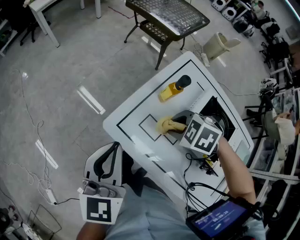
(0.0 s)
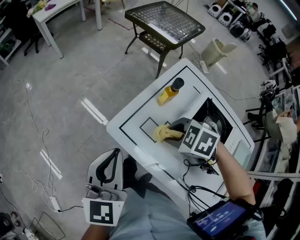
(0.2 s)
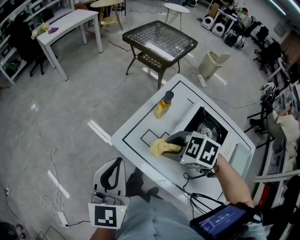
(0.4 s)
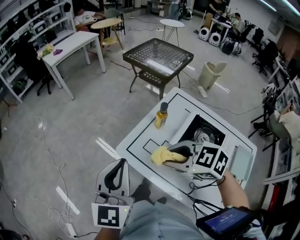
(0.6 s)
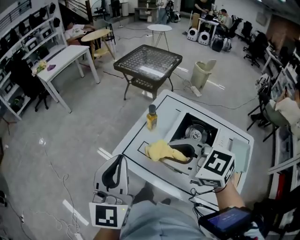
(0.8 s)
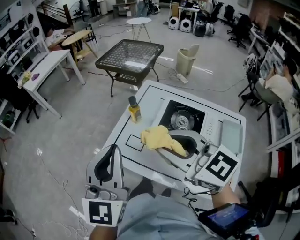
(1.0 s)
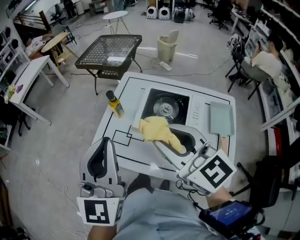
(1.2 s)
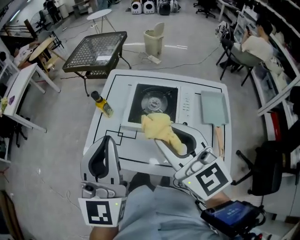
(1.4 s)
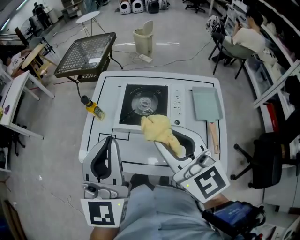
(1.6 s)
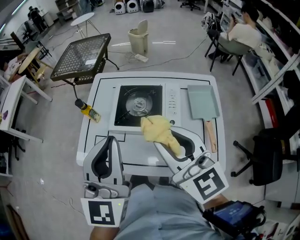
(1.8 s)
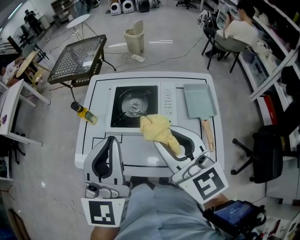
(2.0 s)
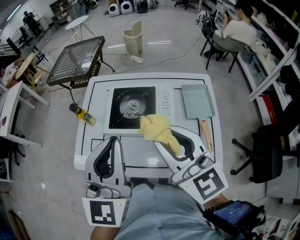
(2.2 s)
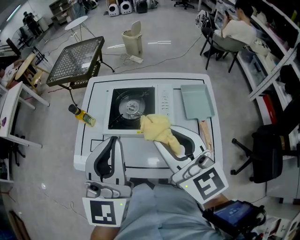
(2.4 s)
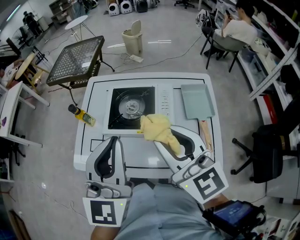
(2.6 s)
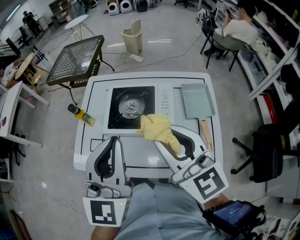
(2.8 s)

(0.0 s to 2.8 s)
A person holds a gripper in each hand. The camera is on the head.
0.0 s - 1.4 s: The left gripper changes place by roughly 30 cm, and changes its angle by some 40 degrees. Meanwhile the right gripper travels upward by some 30 cm, and tilts its fingers about 70 degrees upward.
1.4 s - 2.8 s: Both grippers move to the right, about 10 cm.

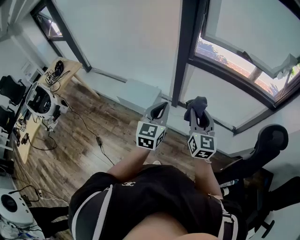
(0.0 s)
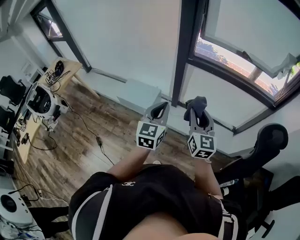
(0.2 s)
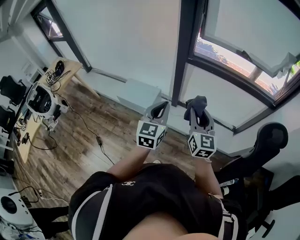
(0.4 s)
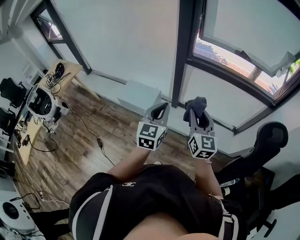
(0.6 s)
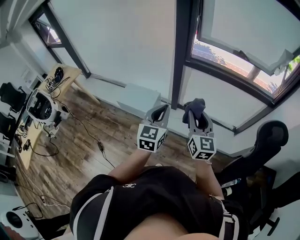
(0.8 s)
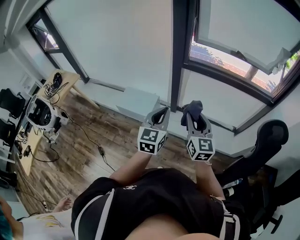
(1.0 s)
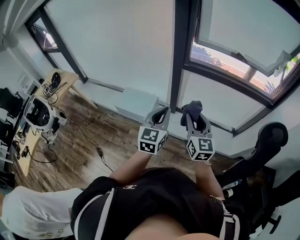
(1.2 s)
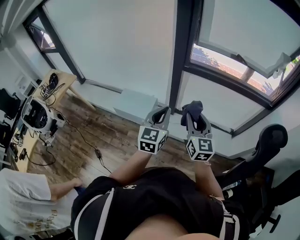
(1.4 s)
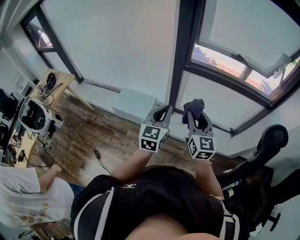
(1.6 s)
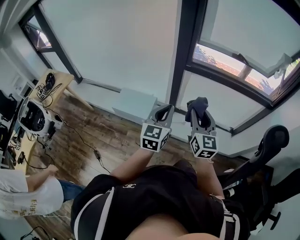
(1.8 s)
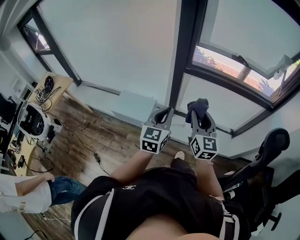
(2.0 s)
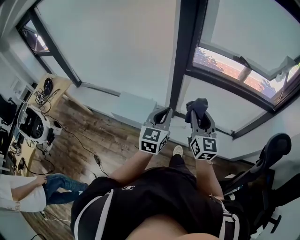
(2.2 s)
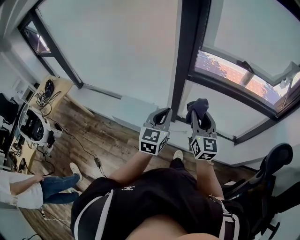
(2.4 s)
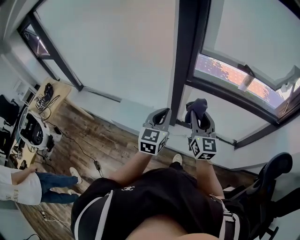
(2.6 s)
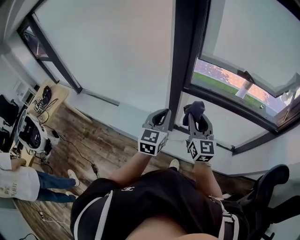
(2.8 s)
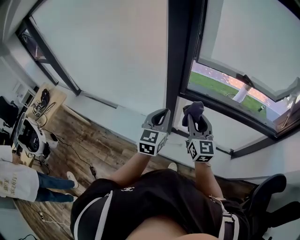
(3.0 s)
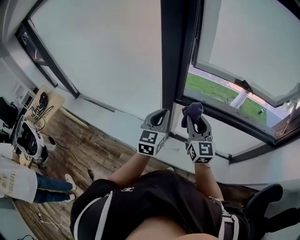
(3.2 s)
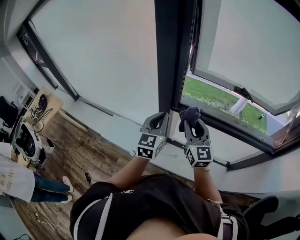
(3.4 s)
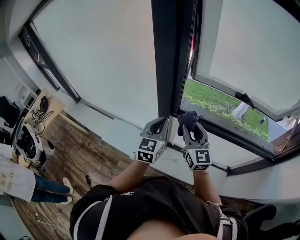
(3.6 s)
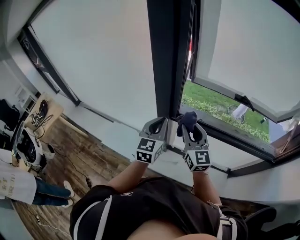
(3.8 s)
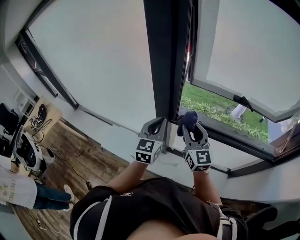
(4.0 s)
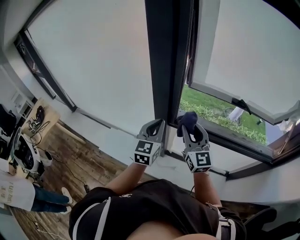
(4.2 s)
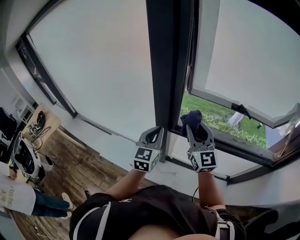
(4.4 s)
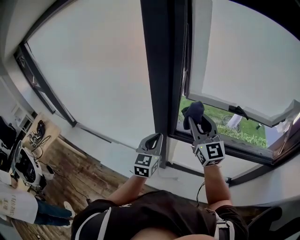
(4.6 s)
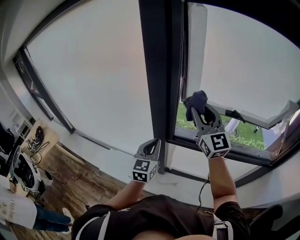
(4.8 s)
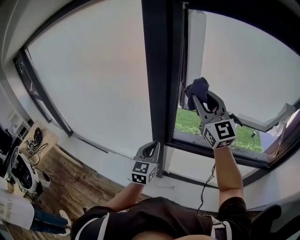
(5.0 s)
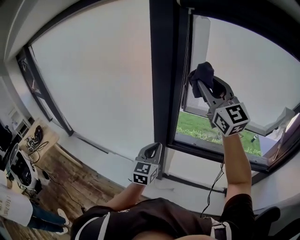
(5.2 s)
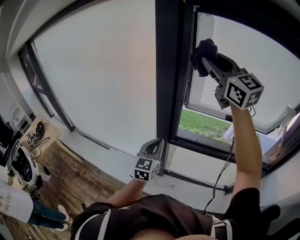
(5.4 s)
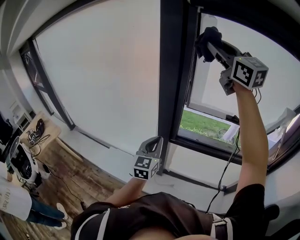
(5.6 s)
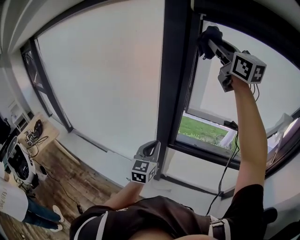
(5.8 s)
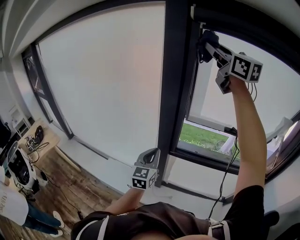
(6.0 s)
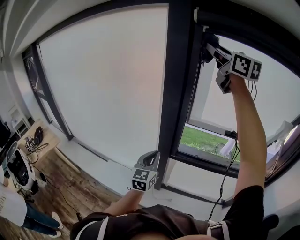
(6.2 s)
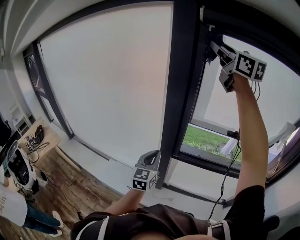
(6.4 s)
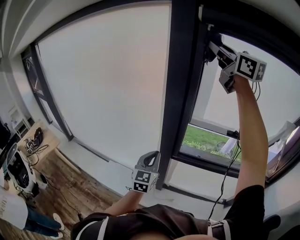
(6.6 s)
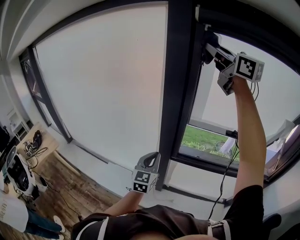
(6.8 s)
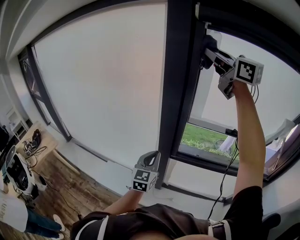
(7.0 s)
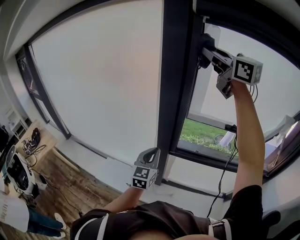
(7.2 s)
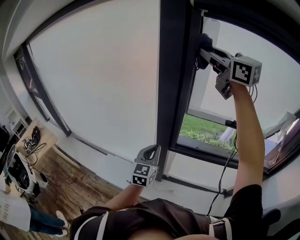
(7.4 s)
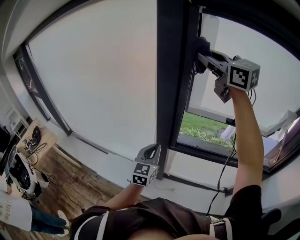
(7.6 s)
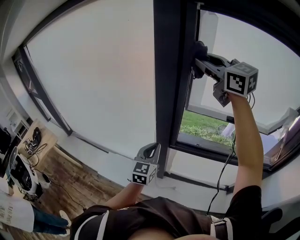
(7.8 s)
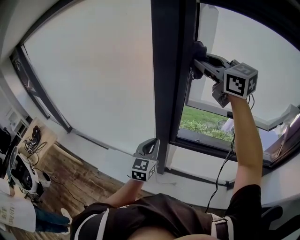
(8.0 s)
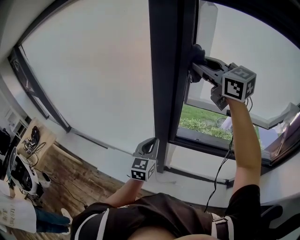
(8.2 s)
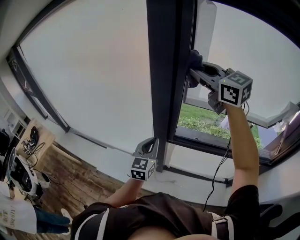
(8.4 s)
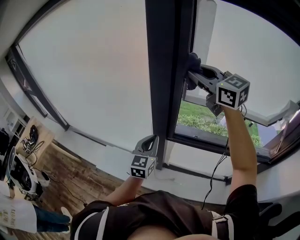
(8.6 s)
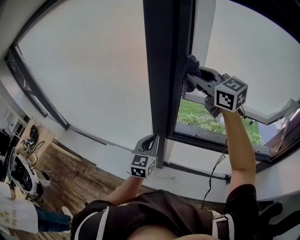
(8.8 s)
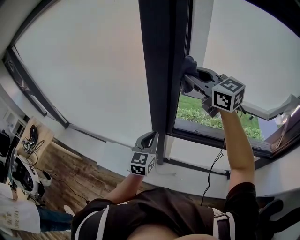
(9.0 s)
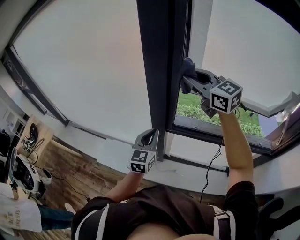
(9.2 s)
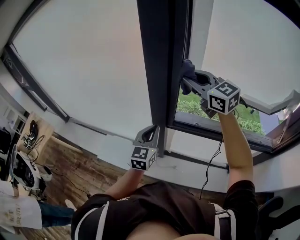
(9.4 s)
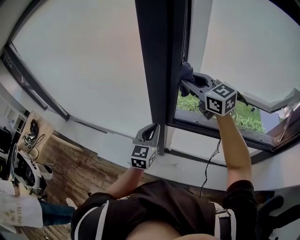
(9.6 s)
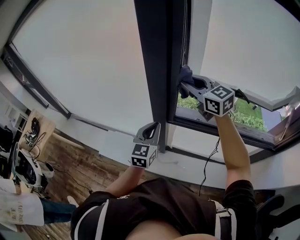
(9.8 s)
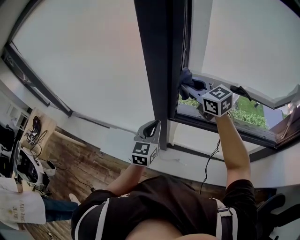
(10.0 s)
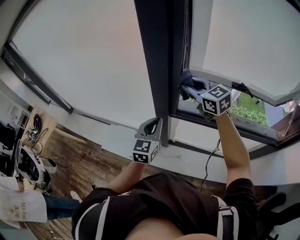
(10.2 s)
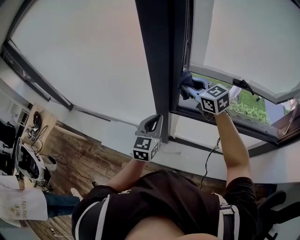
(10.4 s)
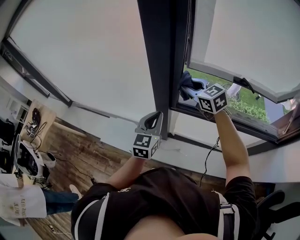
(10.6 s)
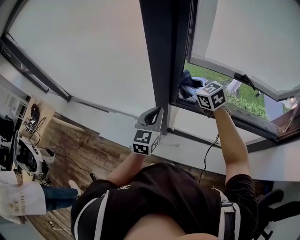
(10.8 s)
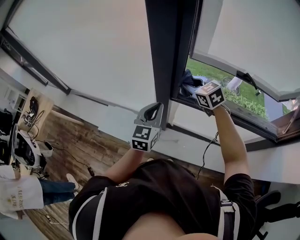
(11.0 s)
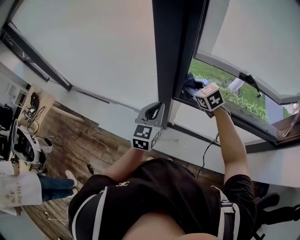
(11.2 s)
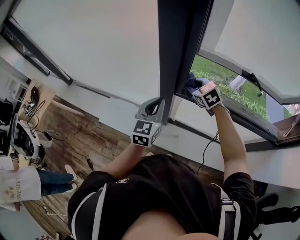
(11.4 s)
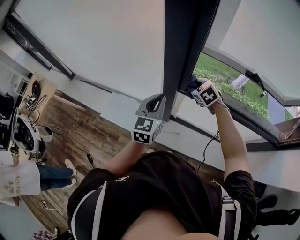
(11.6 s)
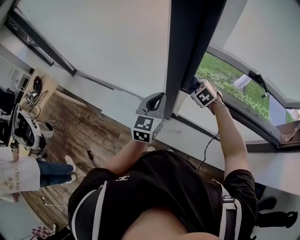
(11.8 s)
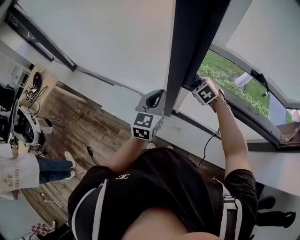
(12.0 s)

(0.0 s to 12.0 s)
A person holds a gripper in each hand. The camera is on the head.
0.0 s - 1.6 s: The grippers make only small movements.
1.6 s - 3.0 s: The two grippers go roughly 25 cm forward.
3.0 s - 4.4 s: The left gripper travels forward by roughly 10 cm, while the right gripper goes approximately 15 cm forward and upward.
4.4 s - 6.0 s: The right gripper moves upward, roughly 40 cm. Meanwhile the left gripper moves approximately 5 cm.
6.0 s - 7.6 s: The right gripper moves downward, roughly 10 cm.
7.6 s - 9.0 s: The right gripper is displaced downward by roughly 15 cm.
9.0 s - 10.4 s: The right gripper goes some 20 cm downward.
10.4 s - 12.0 s: The left gripper shifts by about 5 cm, while the right gripper shifts about 20 cm downward, and points its fingers roughly 40 degrees further downward.

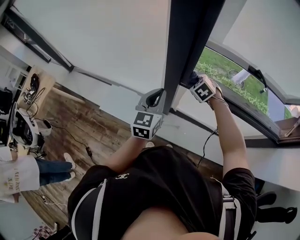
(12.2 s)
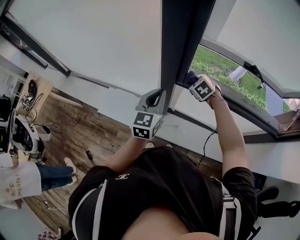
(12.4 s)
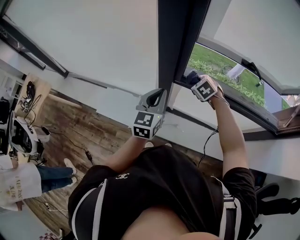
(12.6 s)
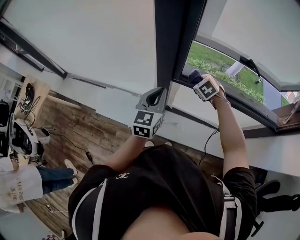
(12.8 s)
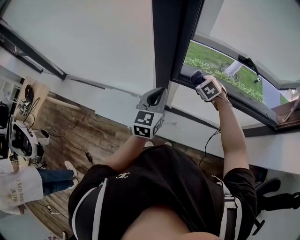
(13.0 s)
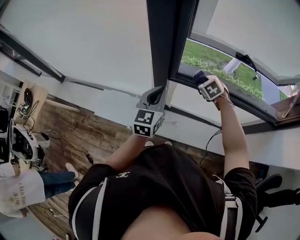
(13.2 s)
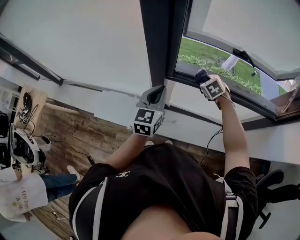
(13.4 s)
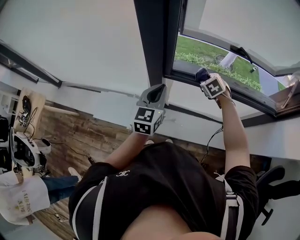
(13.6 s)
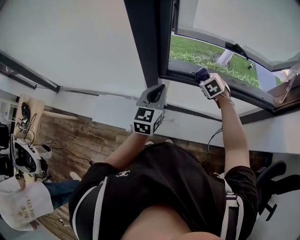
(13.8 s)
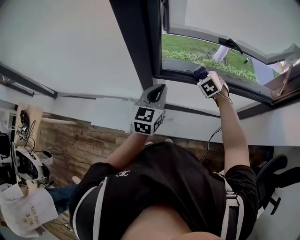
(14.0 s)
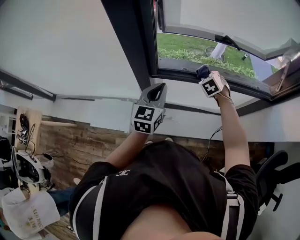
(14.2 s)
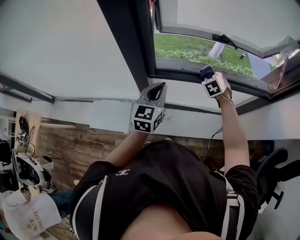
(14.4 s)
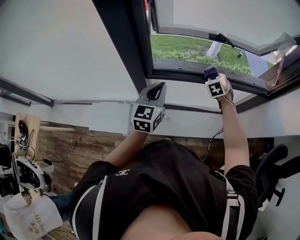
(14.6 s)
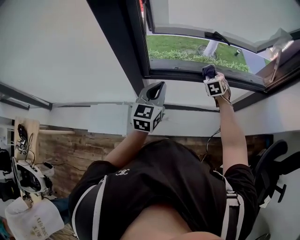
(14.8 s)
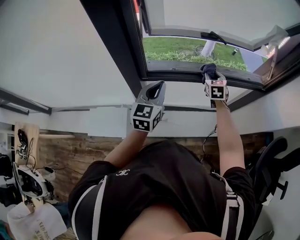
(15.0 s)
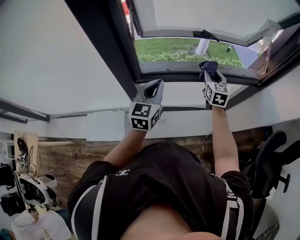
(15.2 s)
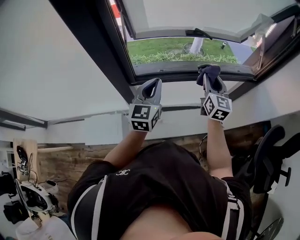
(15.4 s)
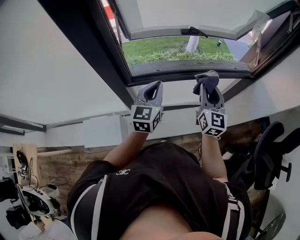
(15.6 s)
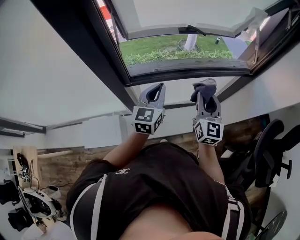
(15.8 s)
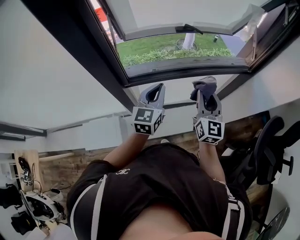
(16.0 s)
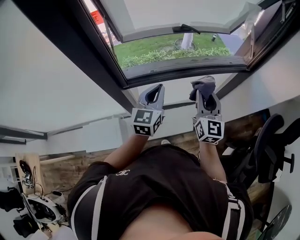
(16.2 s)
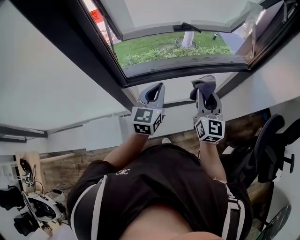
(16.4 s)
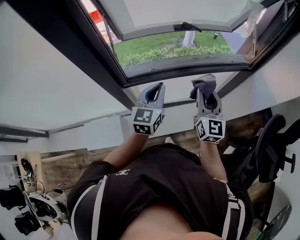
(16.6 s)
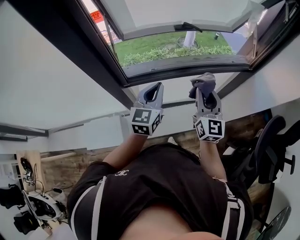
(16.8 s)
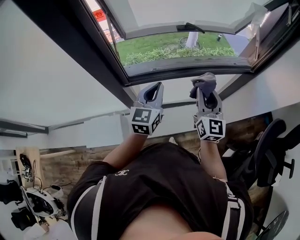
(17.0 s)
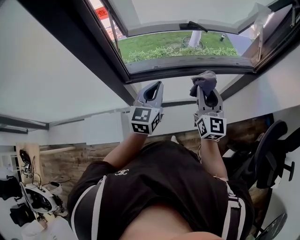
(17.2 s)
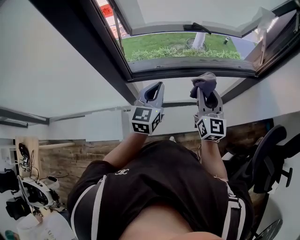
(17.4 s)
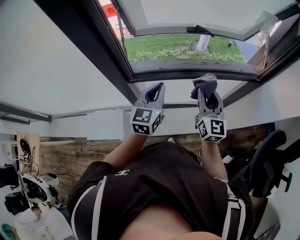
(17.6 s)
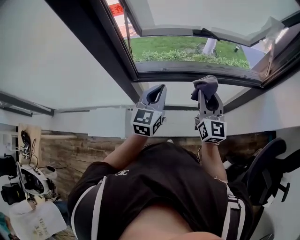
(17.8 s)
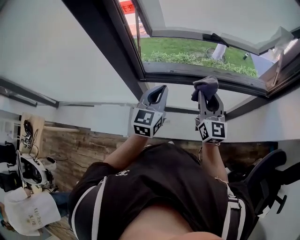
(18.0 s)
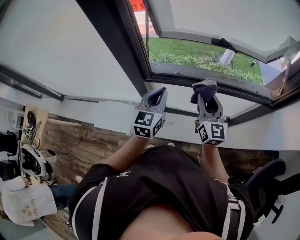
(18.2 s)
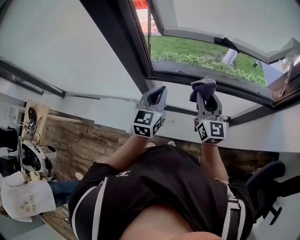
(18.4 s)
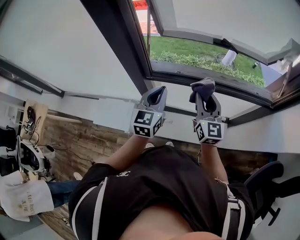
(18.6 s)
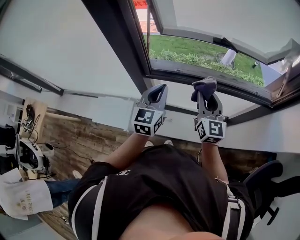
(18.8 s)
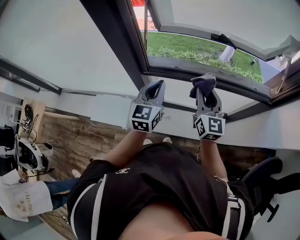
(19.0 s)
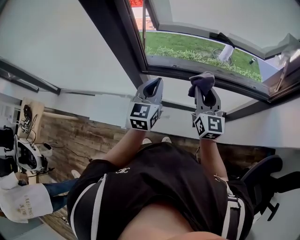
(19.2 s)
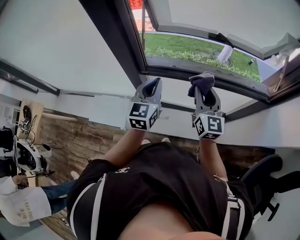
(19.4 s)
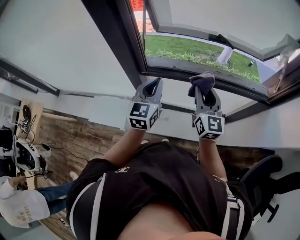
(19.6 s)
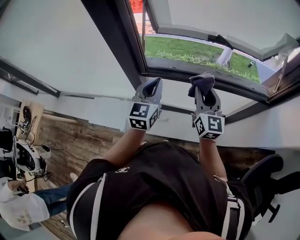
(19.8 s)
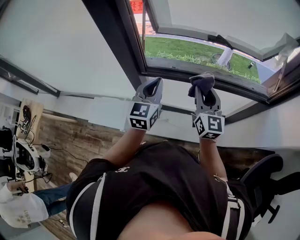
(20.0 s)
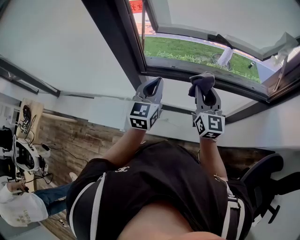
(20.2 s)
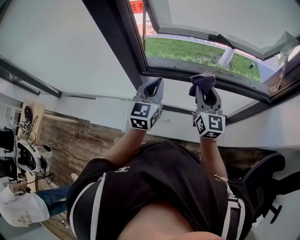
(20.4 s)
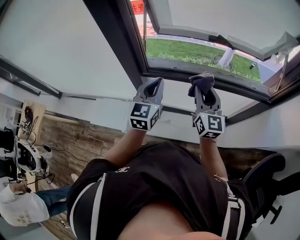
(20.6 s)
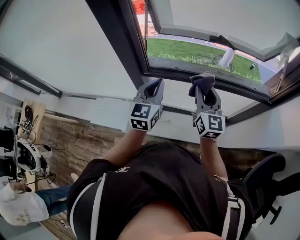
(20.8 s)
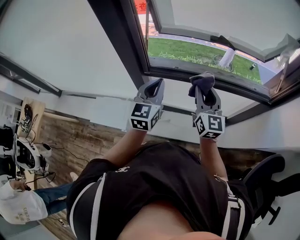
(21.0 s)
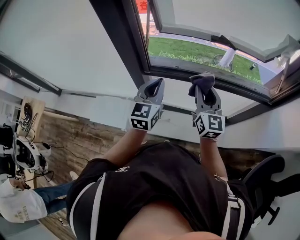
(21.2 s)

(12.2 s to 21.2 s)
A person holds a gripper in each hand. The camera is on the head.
12.2 s - 13.8 s: The left gripper goes about 10 cm to the right; the right gripper is displaced to the right by about 15 cm, and turns by some 20 degrees.
13.8 s - 15.2 s: The left gripper heads to the right, covering approximately 10 cm, while the right gripper shifts roughly 20 cm to the right and upward, and tips its fingers upward by about 40 degrees.
15.2 s - 16.6 s: The left gripper moves to the right, approximately 5 cm. Meanwhile the right gripper heads backward, covering some 15 cm, and swivels about 20 degrees.
16.6 s - 18.2 s: The two grippers go some 5 cm to the left. The right gripper turns by about 20 degrees.
18.2 s - 19.8 s: Both grippers stay about where they are.
19.8 s - 21.2 s: Both grippers stay about where they are.
